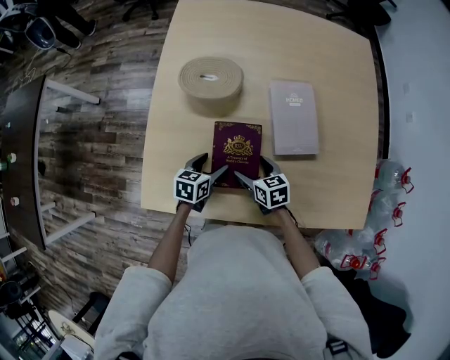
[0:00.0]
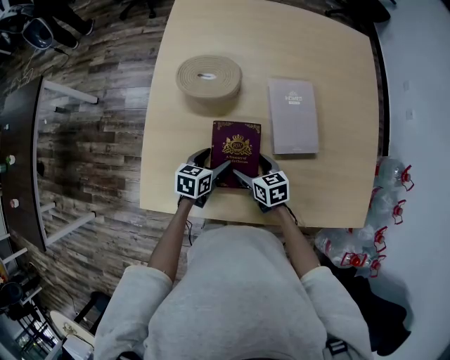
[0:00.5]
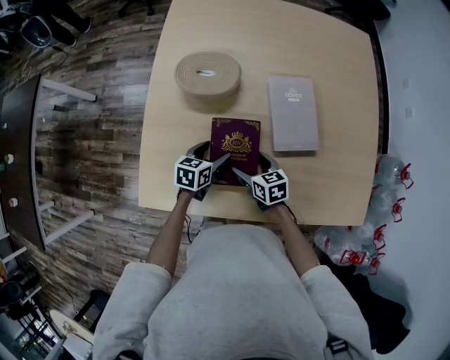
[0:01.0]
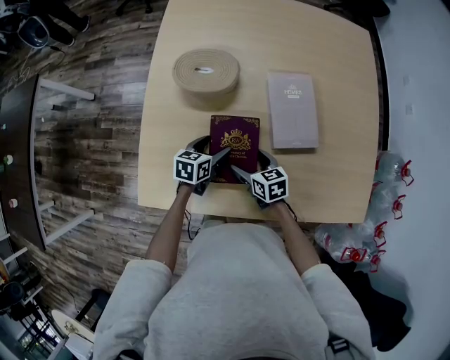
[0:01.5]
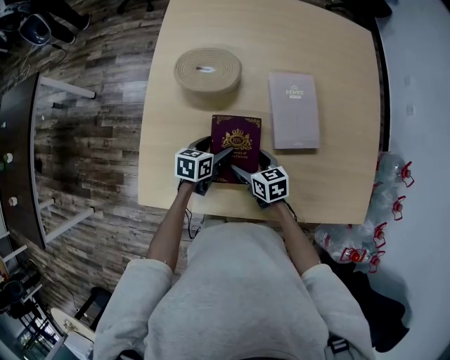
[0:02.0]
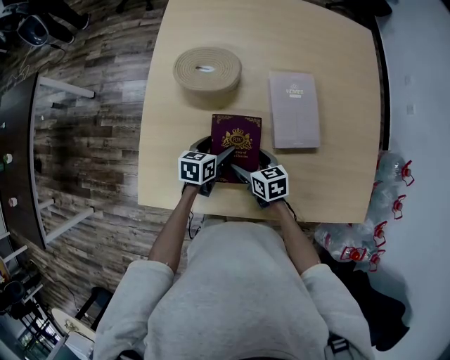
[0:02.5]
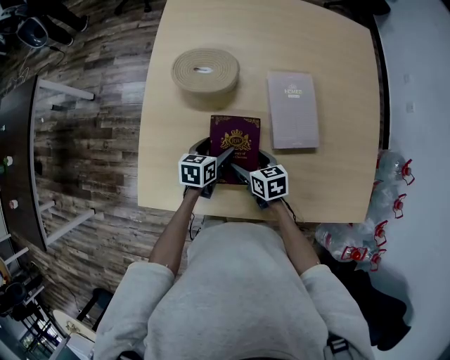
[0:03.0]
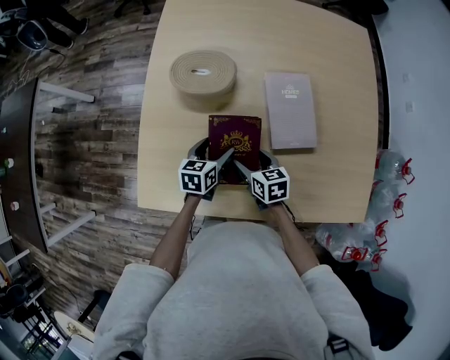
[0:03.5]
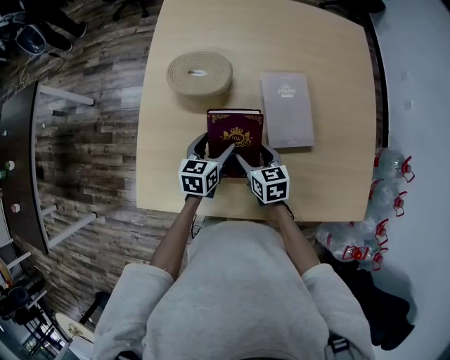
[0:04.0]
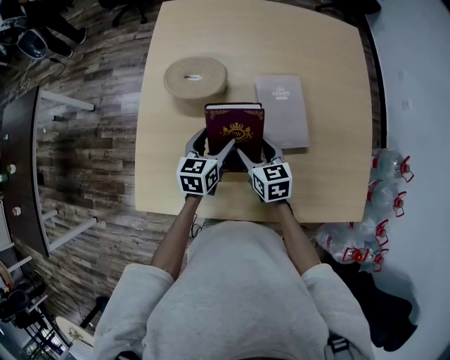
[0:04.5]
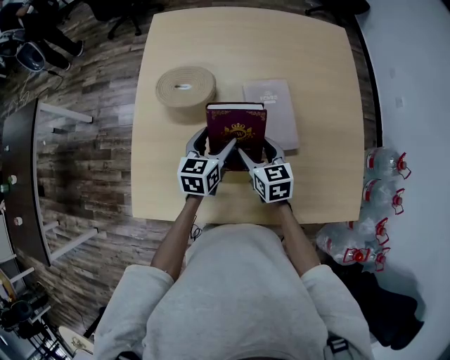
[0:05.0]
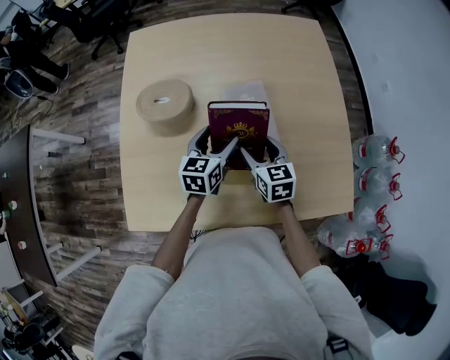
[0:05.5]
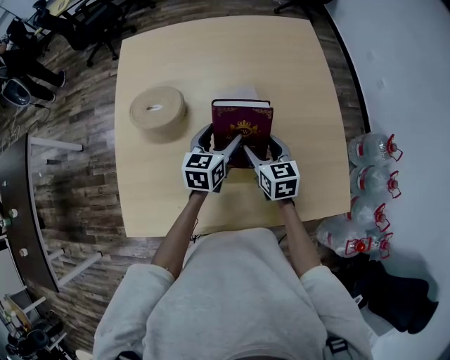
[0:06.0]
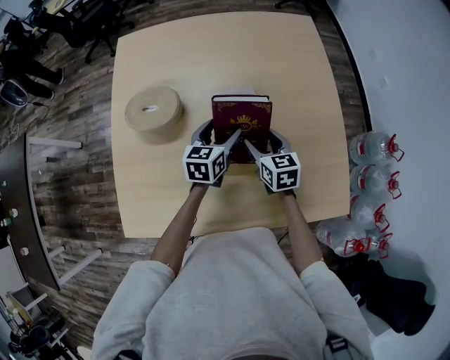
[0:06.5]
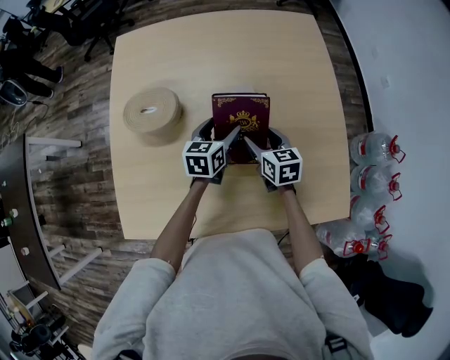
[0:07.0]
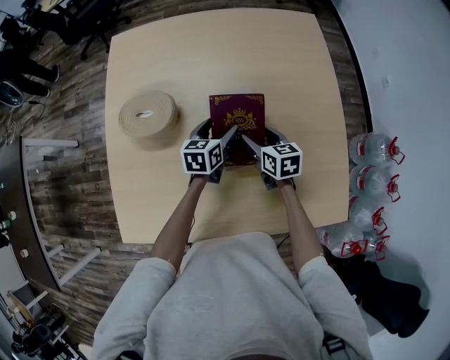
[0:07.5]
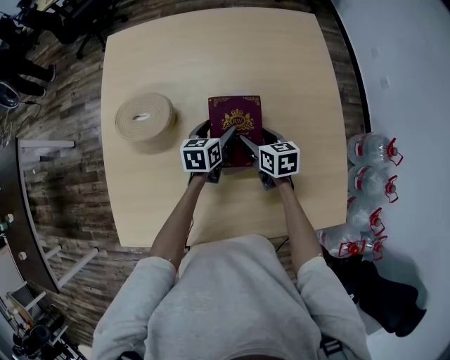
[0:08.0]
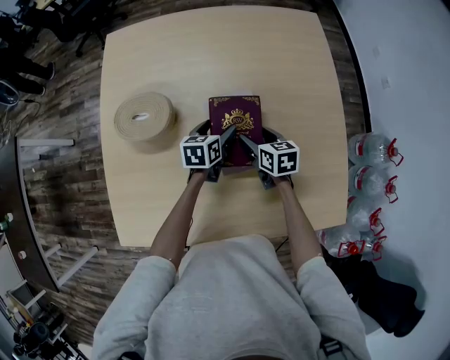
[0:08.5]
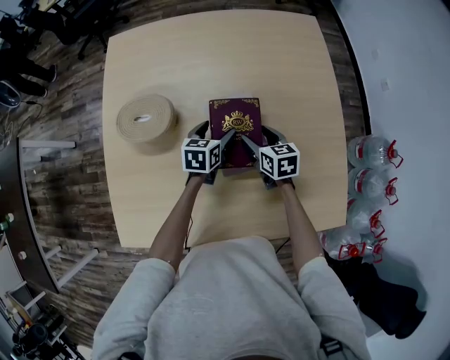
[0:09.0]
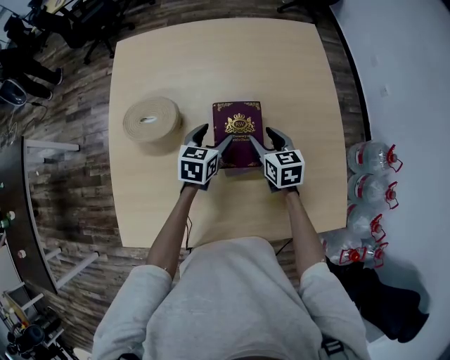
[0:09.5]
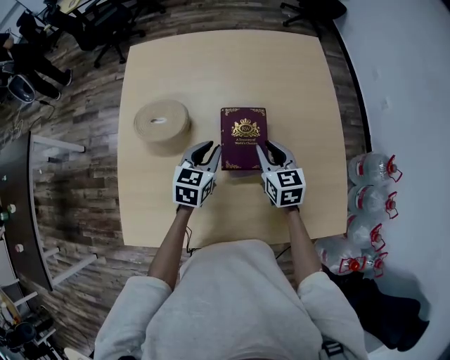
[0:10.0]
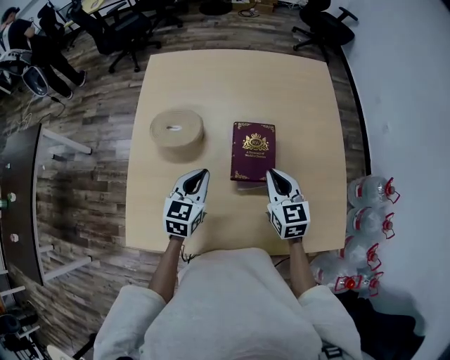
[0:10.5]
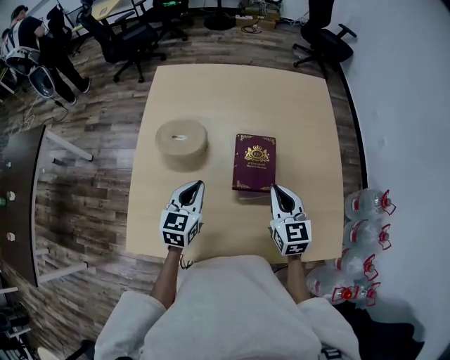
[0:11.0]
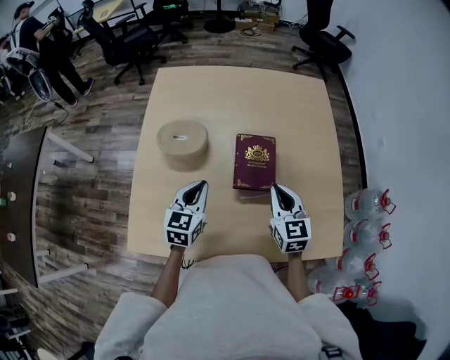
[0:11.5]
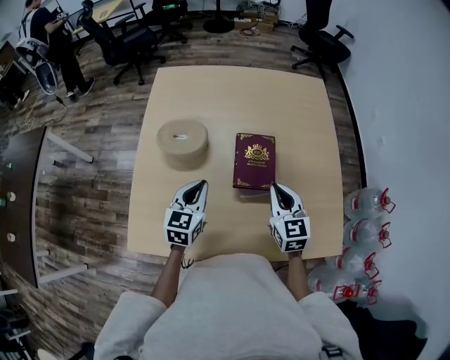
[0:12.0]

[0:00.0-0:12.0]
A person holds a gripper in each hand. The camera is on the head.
0:00.0 to 0:02.0: The grippers stay close to where they were, moving slightly.
0:02.0 to 0:04.0: The right gripper moves approximately 5 cm; the left gripper heads upward, covering some 5 cm.
0:04.0 to 0:06.0: The left gripper travels to the right, upward and forward by approximately 20 cm; the right gripper goes roughly 20 cm to the right and upward.
0:06.0 to 0:08.0: The left gripper moves downward and forward, roughly 15 cm. Meanwhile the right gripper moves forward and downward, some 10 cm.
0:08.0 to 0:10.0: The right gripper travels upward by roughly 10 cm, changes its angle by some 20 degrees, and closes. Meanwhile the left gripper shifts roughly 10 cm upward and backward, changes its angle by about 20 degrees, and closes its fingers.
0:10.0 to 0:12.0: The left gripper travels backward, to the left and upward by about 15 cm, while the right gripper is displaced backward and upward by approximately 10 cm.

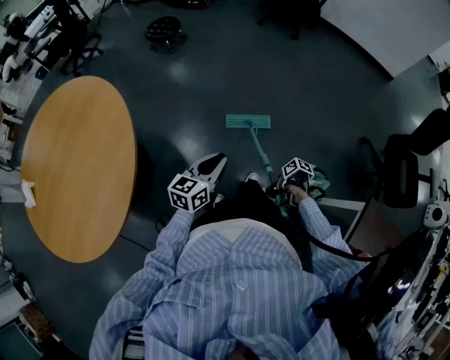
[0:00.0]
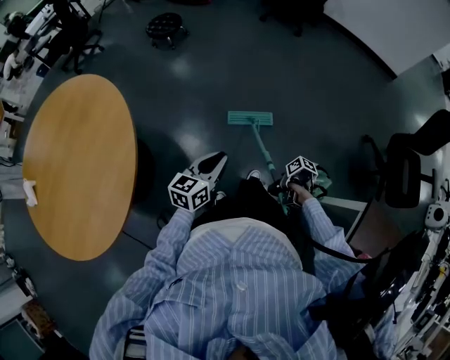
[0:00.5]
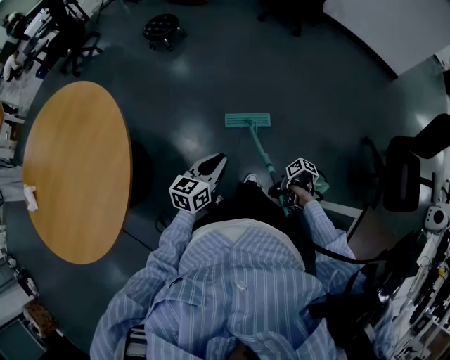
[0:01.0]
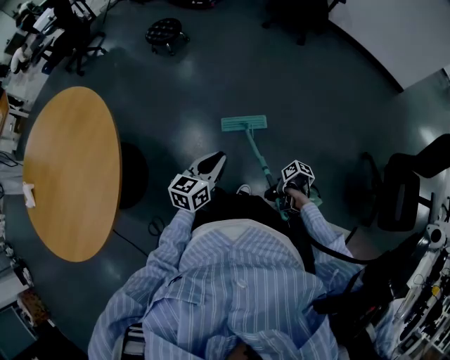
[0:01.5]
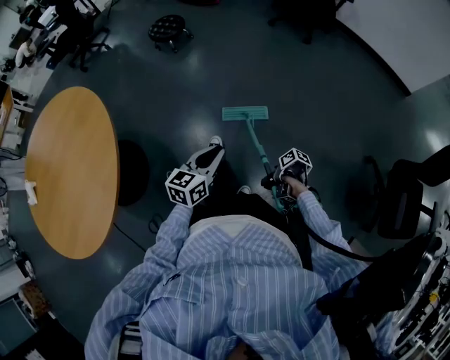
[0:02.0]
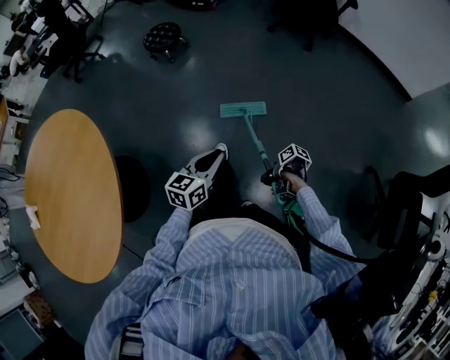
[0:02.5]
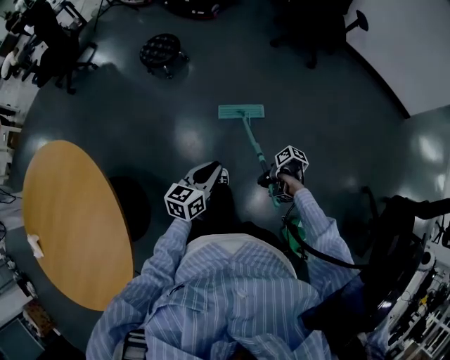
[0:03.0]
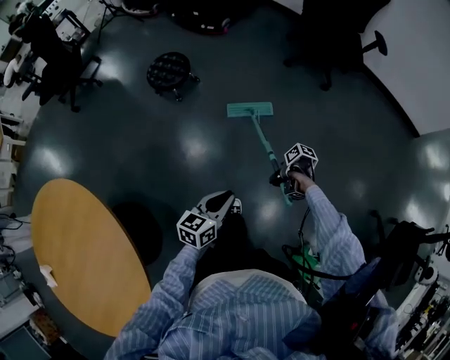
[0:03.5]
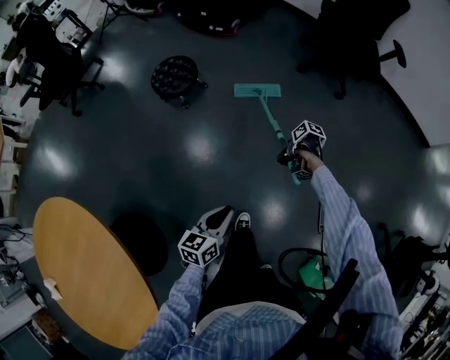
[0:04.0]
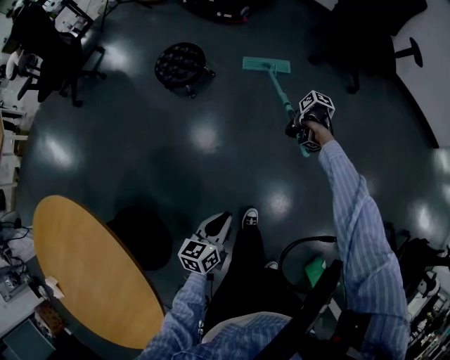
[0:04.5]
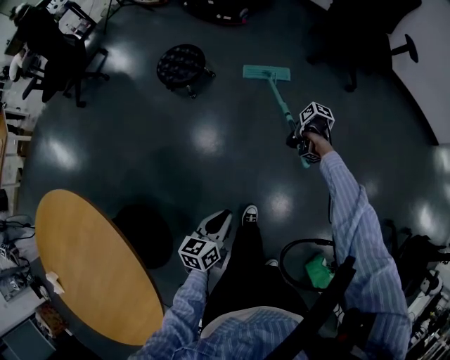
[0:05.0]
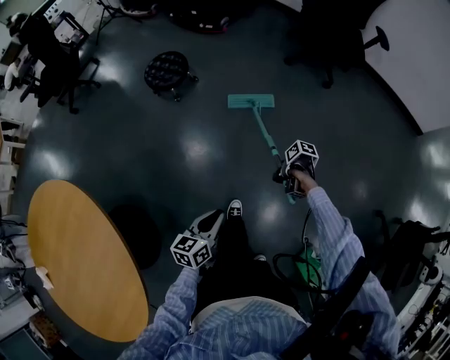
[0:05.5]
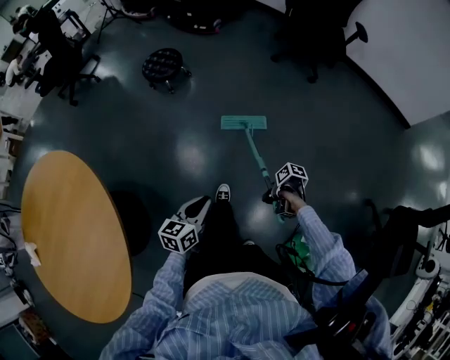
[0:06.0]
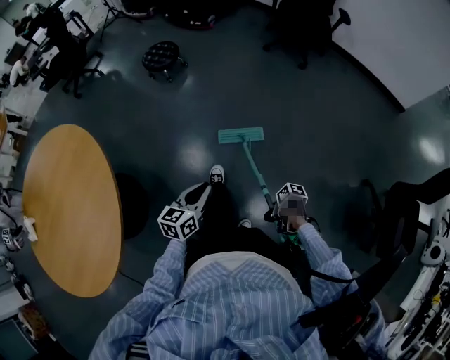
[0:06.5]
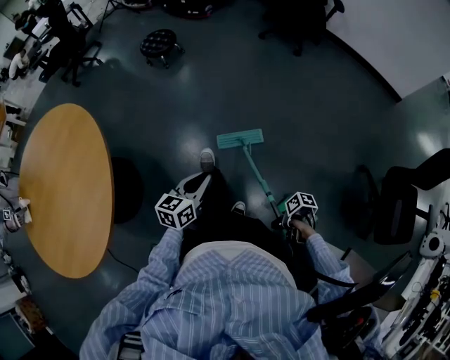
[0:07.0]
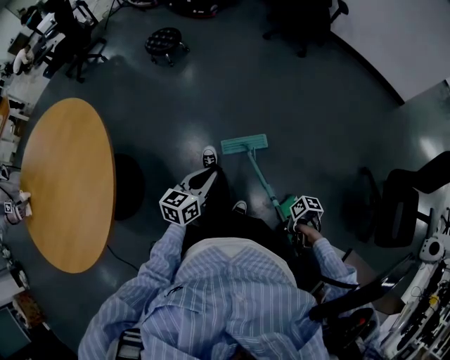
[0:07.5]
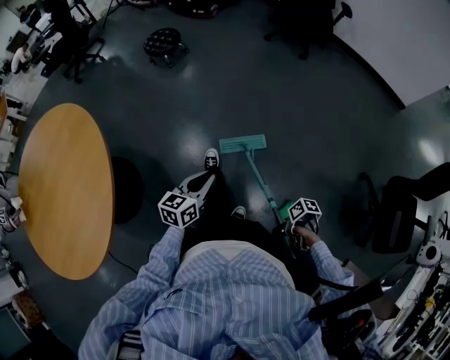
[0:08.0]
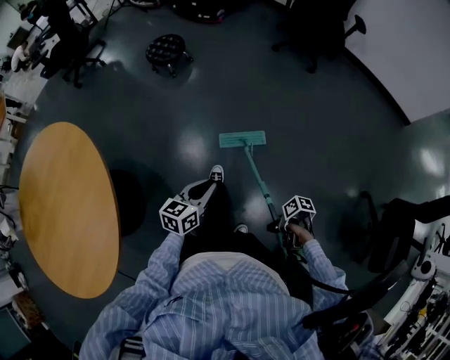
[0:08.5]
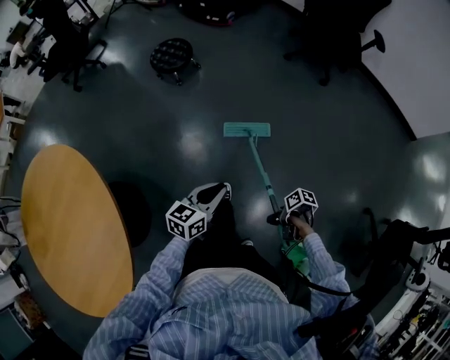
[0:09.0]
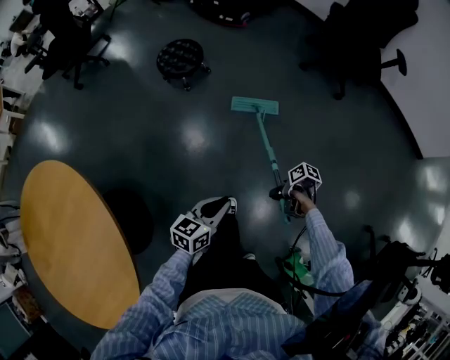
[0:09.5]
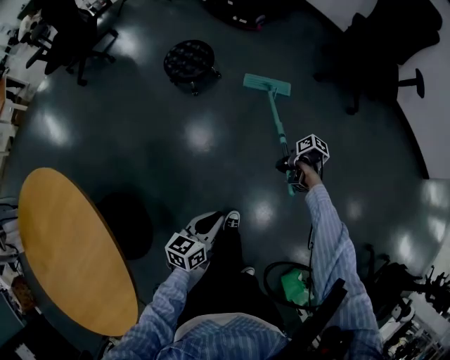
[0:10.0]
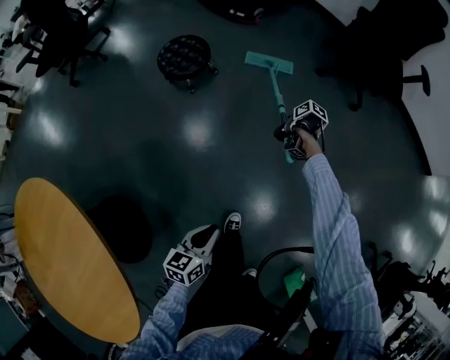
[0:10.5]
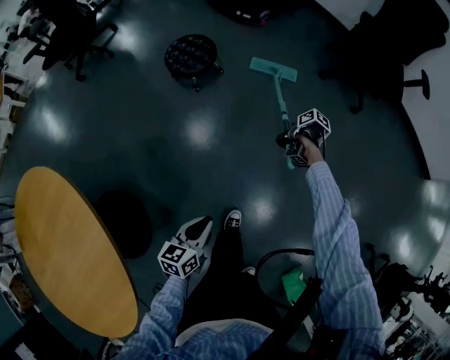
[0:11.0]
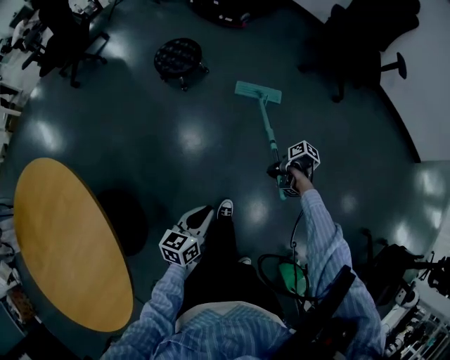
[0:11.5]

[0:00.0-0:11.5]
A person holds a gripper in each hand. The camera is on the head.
0:00.0 to 0:02.0: The left gripper ends up some 20 cm from where it was.
0:02.0 to 0:04.0: The left gripper shifts by some 50 cm.
0:04.0 to 0:06.0: The left gripper changes place by roughly 25 cm.
0:06.0 to 0:07.5: The left gripper shifts by some 25 cm.
0:07.5 to 0:09.5: The left gripper ends up roughly 40 cm from where it was.

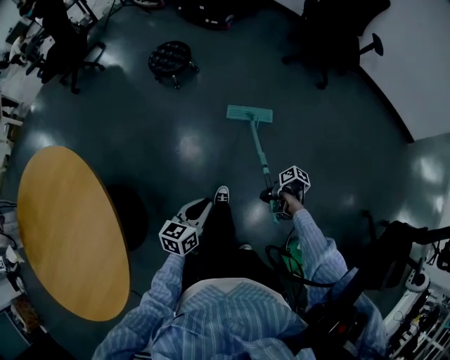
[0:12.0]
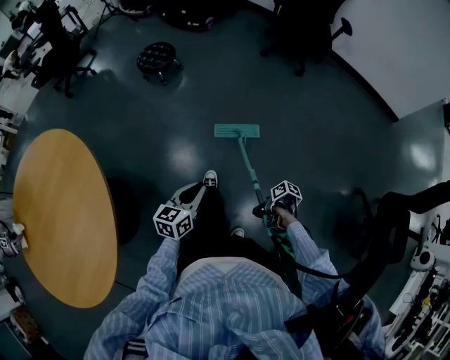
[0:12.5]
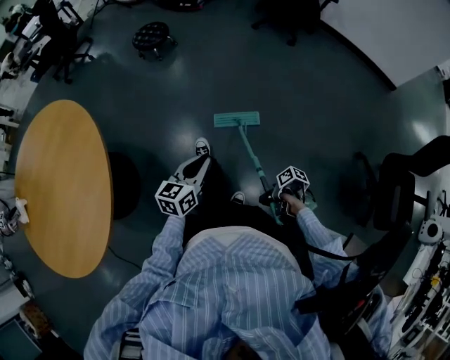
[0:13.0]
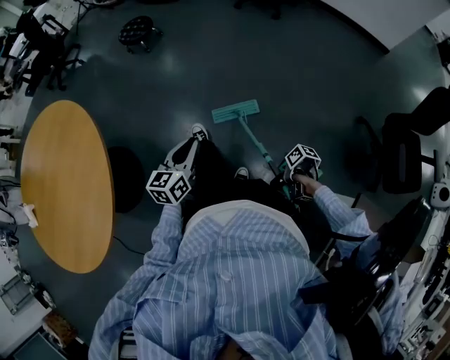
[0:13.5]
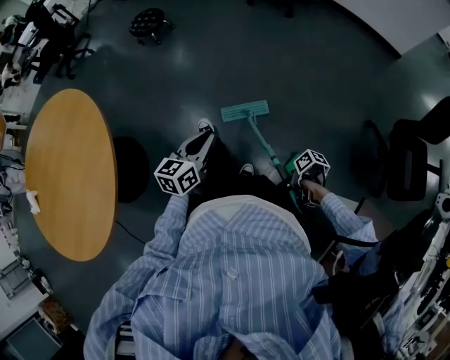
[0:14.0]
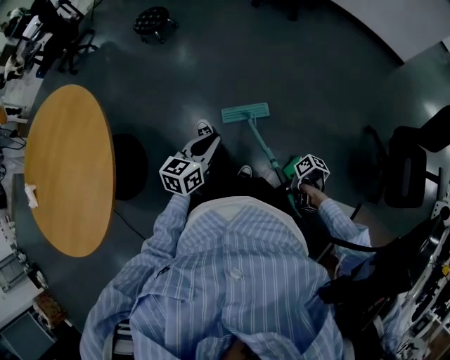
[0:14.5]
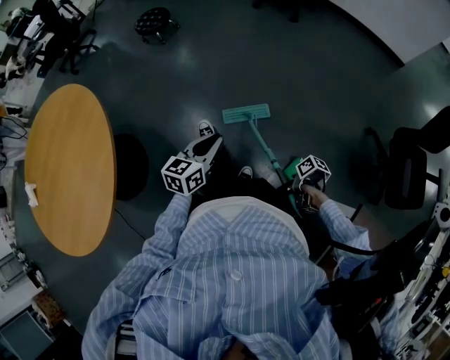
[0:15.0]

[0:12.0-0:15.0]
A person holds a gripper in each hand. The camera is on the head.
0:12.0 to 0:13.5: The left gripper moves approximately 30 cm.
0:13.5 to 0:15.0: The left gripper changes place by roughly 5 cm.
